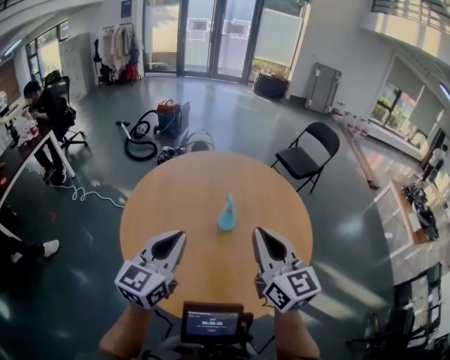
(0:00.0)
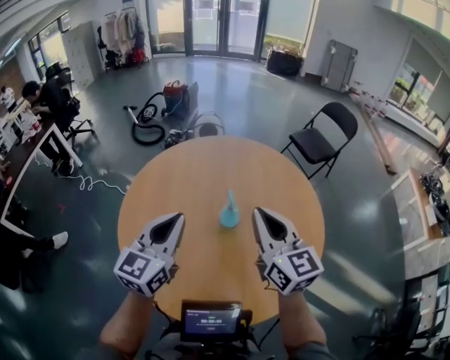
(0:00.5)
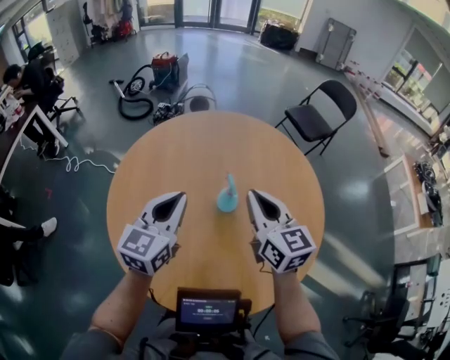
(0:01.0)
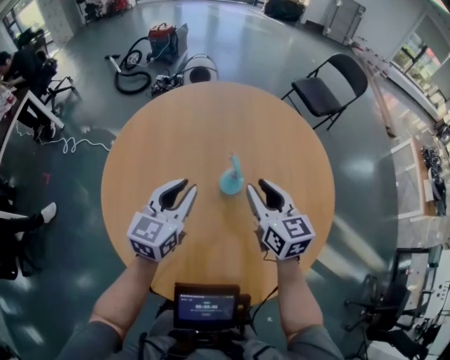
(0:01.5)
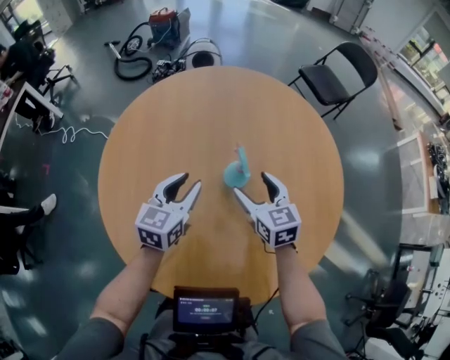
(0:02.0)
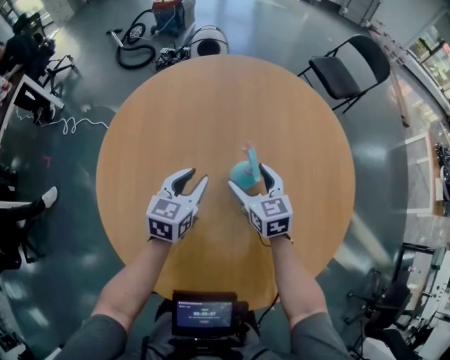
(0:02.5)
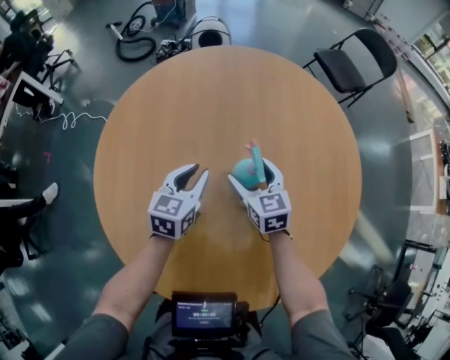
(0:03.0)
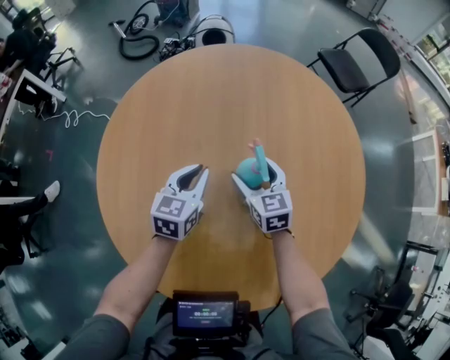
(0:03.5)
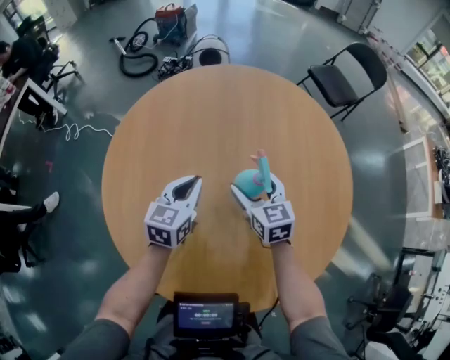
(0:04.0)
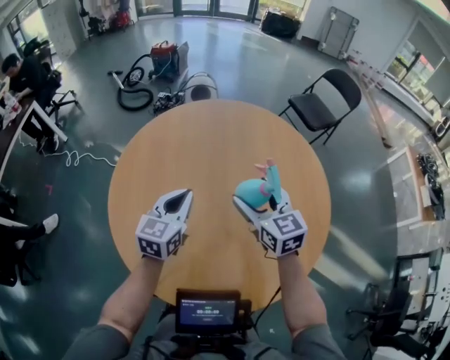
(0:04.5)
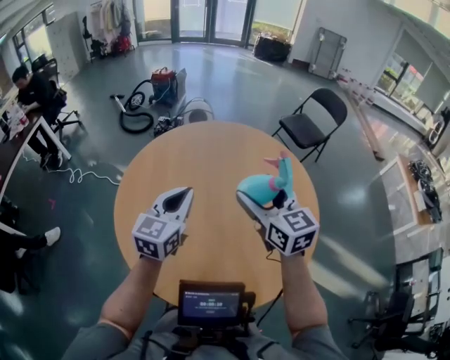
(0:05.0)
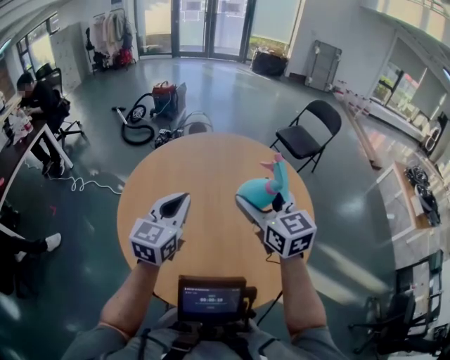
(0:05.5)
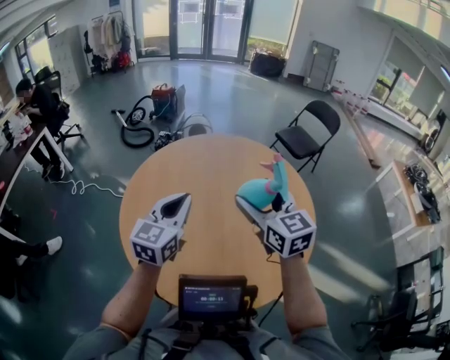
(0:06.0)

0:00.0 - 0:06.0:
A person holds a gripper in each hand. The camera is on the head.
0:00.0 - 0:02.0: The two grippers go about 30 cm downward and forward. The right gripper swivels approximately 30 degrees, and opens up. The left gripper changes its angle by about 20 degrees, and opens.
0:02.0 - 0:04.0: The right gripper goes downward and returns, some 10 cm each way; the left gripper closes.
0:04.0 - 0:06.0: The right gripper is displaced upward by approximately 30 cm. The left gripper moves upward and backward, about 25 cm, and turns by approximately 20 degrees.

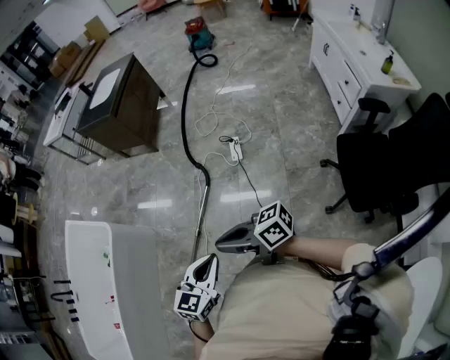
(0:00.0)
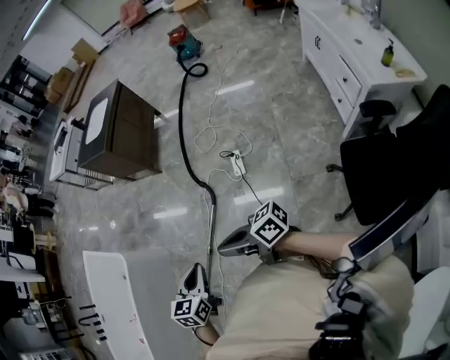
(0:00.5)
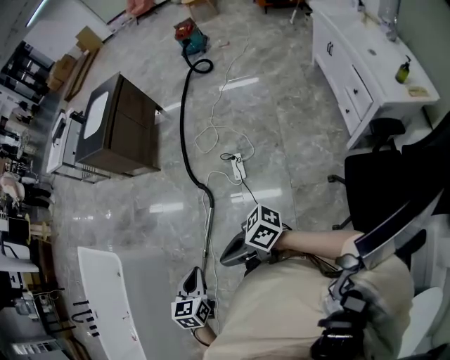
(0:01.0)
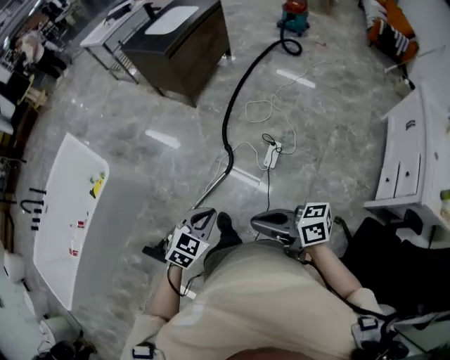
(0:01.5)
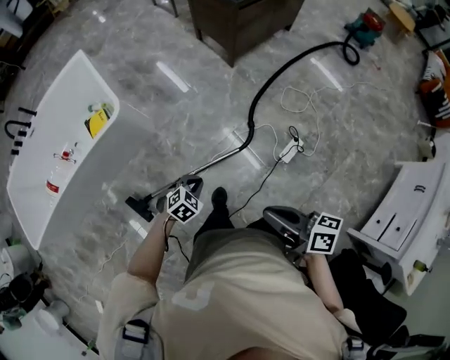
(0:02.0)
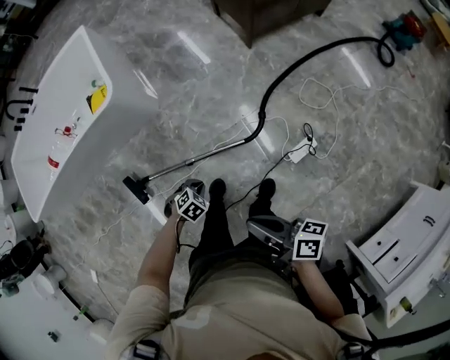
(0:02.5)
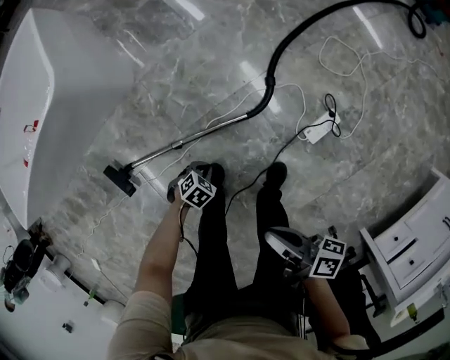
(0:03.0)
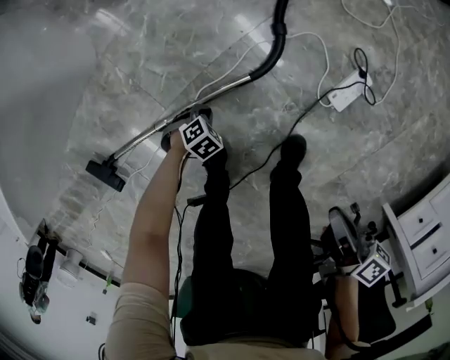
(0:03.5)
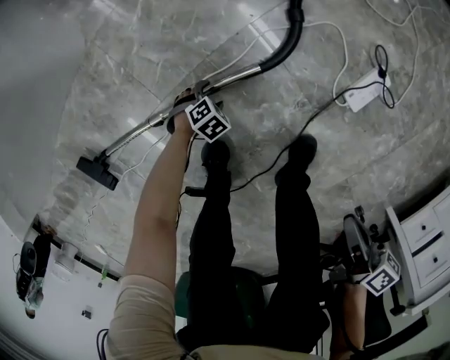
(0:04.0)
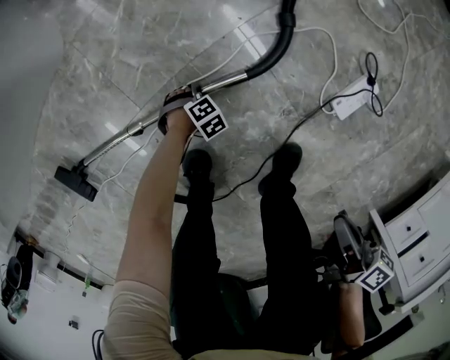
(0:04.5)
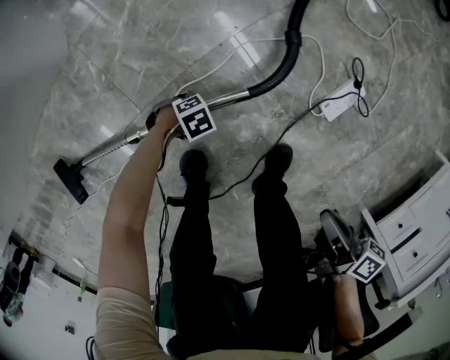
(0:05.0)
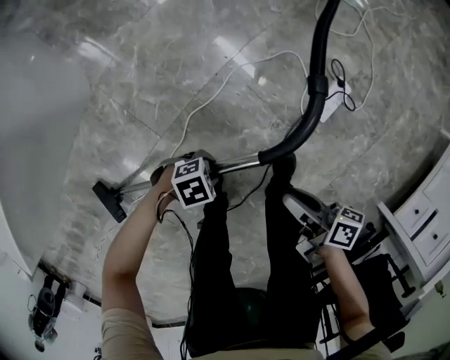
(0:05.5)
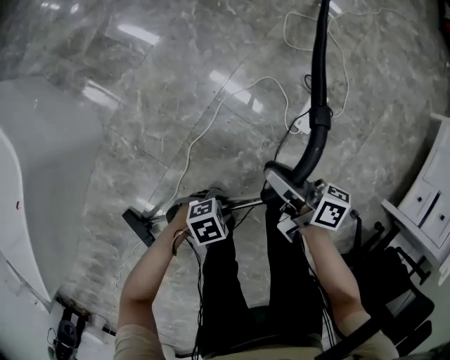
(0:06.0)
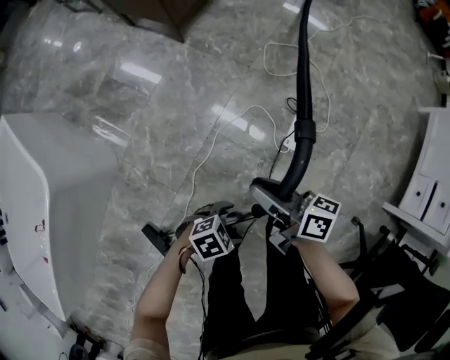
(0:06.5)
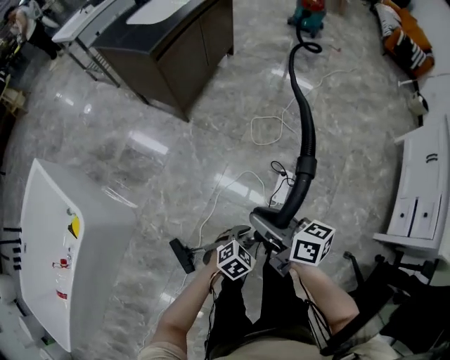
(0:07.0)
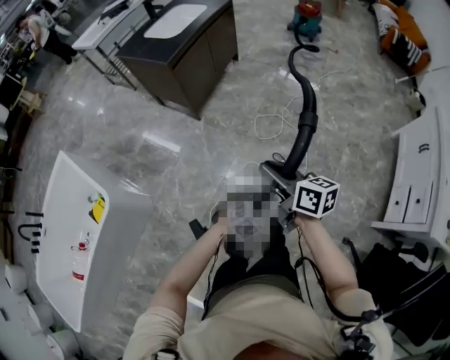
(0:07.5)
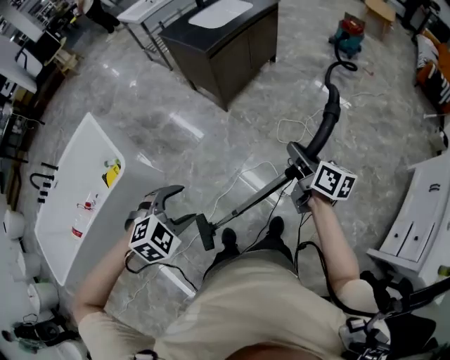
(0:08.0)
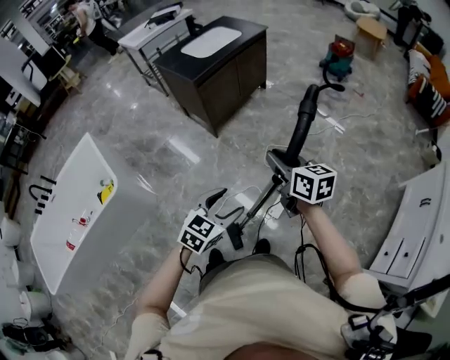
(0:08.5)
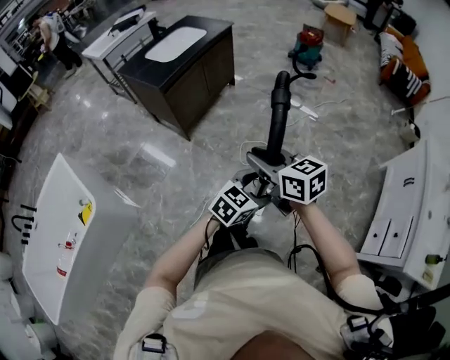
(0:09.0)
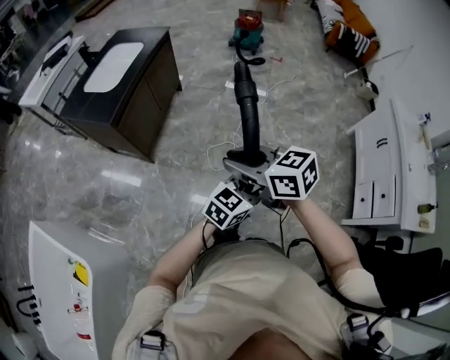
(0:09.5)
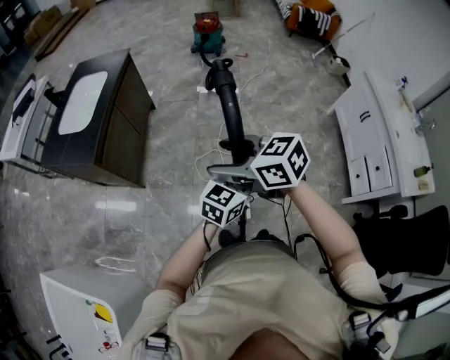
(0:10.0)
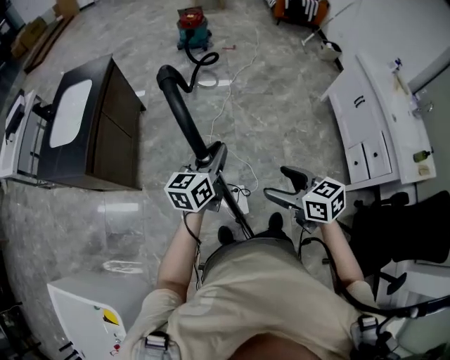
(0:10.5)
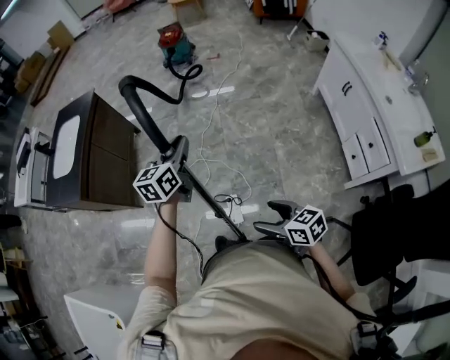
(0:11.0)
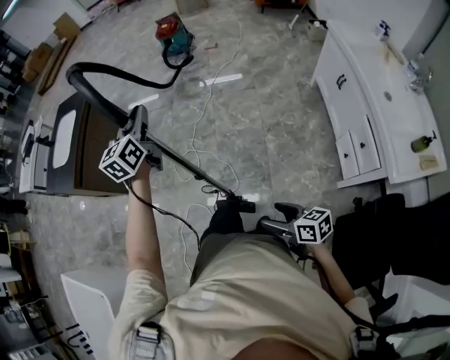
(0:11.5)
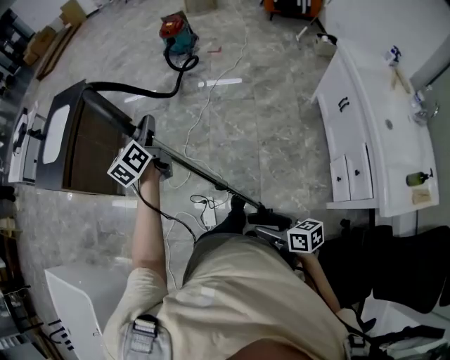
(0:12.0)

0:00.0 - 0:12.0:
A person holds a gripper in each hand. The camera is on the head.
0:00.0 - 0:02.0: The left gripper moves forward and downward, about 40 cm, and tips its fingers downward by about 30 degrees, while the right gripper is displaced forward by approximately 30 cm, and rotates about 20 degrees.
0:02.0 - 0:04.0: The two grippers go about 60 cm downward. The right gripper changes its angle by approximately 40 degrees. The left gripper swivels roughly 20 degrees, and opens up.
0:04.0 - 0:06.0: The right gripper moves roughly 20 cm, and swivels roughly 30 degrees. Meanwhile the left gripper is displaced upward by roughly 35 cm, swivels about 40 degrees, and closes.
0:06.0 - 0:08.0: The two grippers go approximately 50 cm upward. The right gripper swivels roughly 30 degrees. The left gripper changes its angle by some 50 degrees, and opens its fingers.
0:08.0 - 0:10.0: The right gripper goes about 20 cm forward and upward, turns by roughly 30 degrees, and opens up. The left gripper heads forward and to the right, covering approximately 50 cm, tilts its fingers approximately 50 degrees upward, and closes.
0:10.0 - 0:12.0: The left gripper moves to the right and forward, some 25 cm, and rotates approximately 50 degrees. The right gripper travels to the right, backward and downward by some 60 cm, and changes its angle by some 40 degrees.

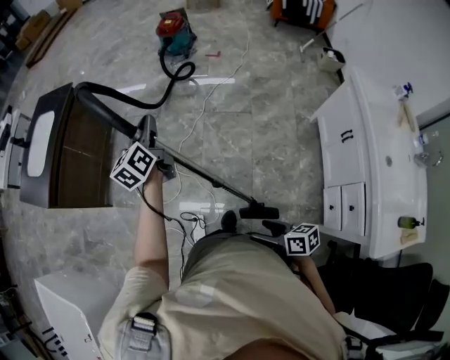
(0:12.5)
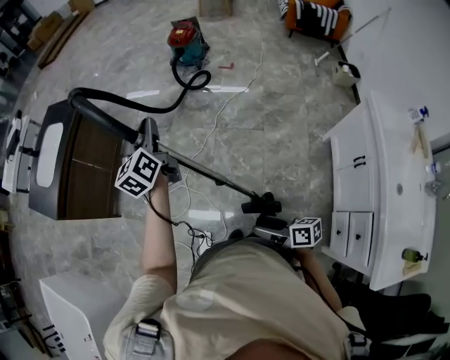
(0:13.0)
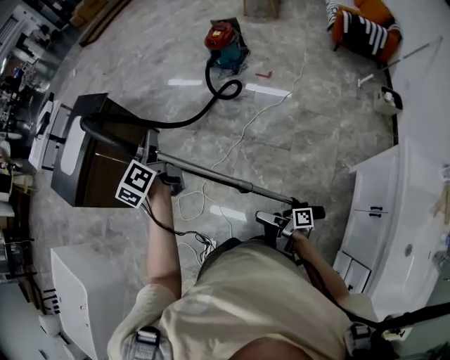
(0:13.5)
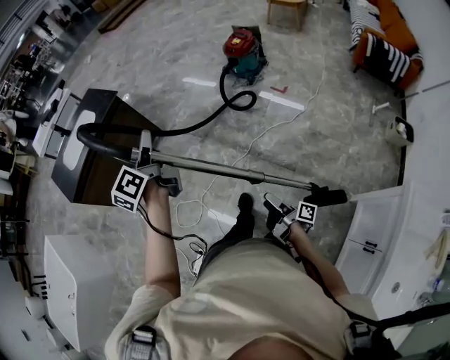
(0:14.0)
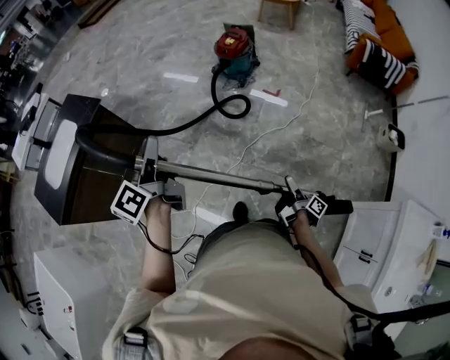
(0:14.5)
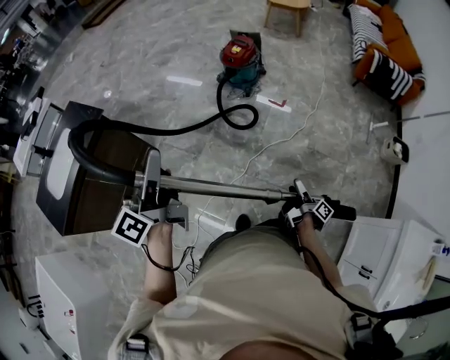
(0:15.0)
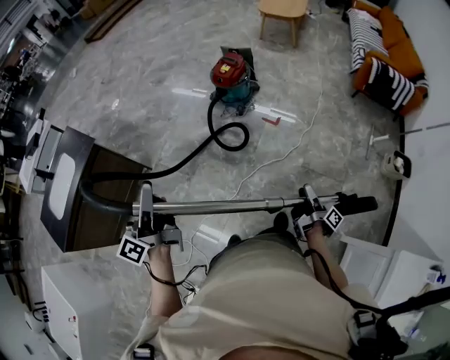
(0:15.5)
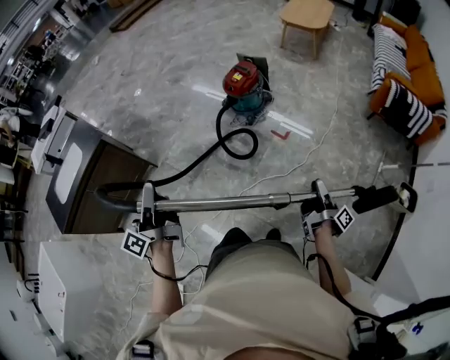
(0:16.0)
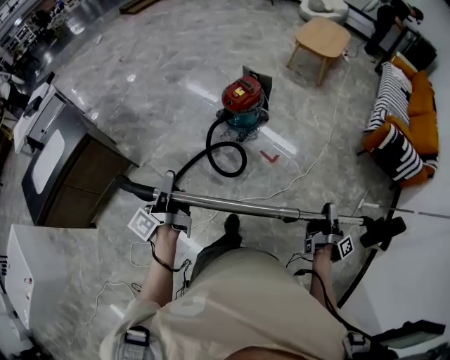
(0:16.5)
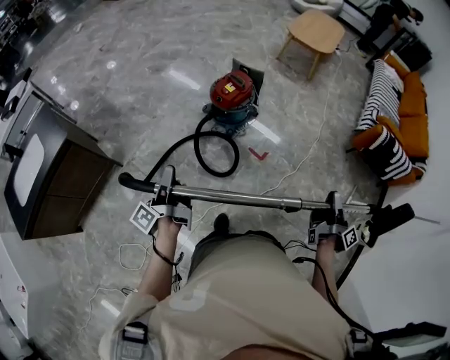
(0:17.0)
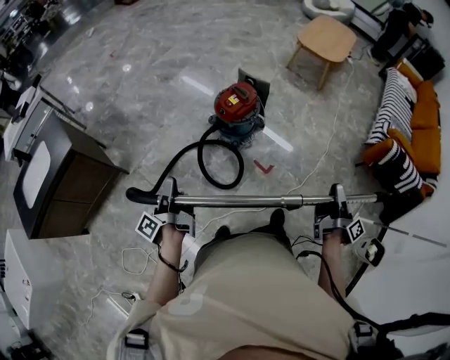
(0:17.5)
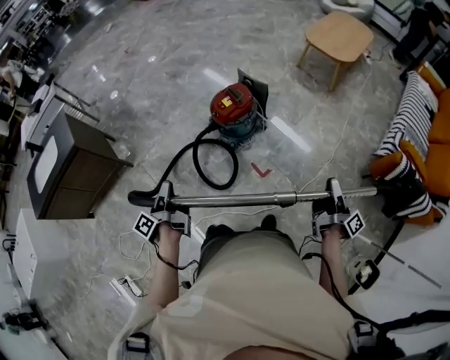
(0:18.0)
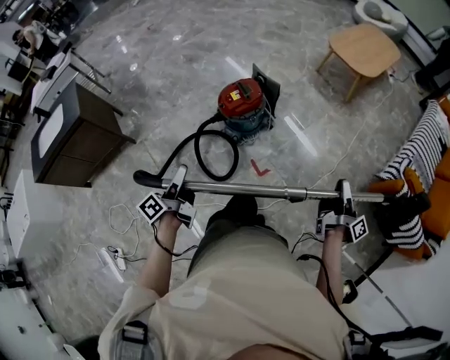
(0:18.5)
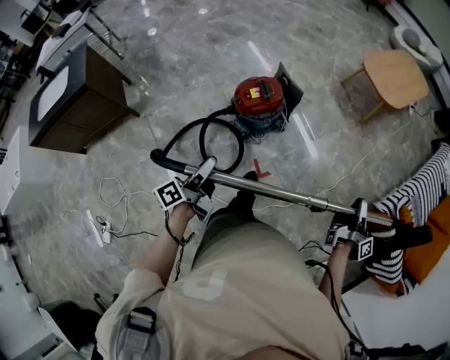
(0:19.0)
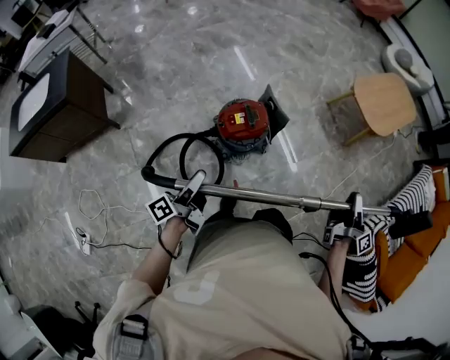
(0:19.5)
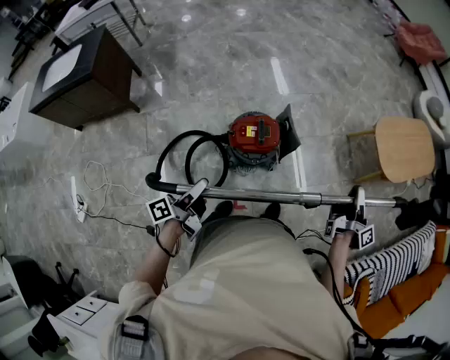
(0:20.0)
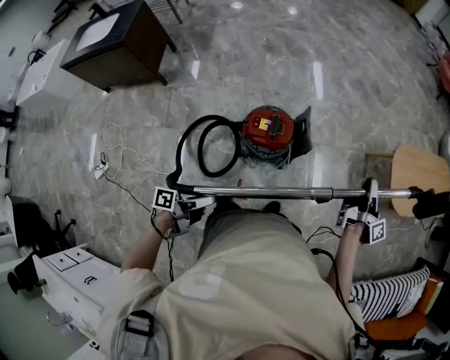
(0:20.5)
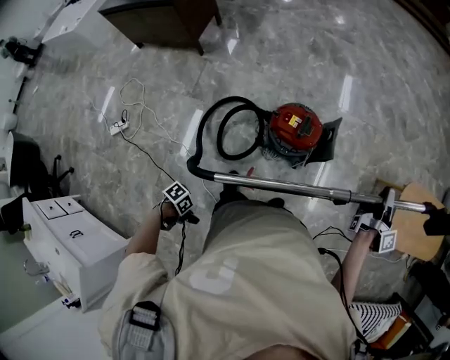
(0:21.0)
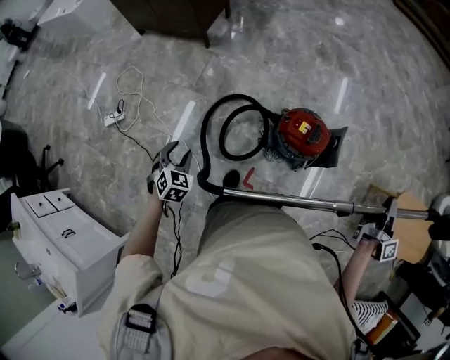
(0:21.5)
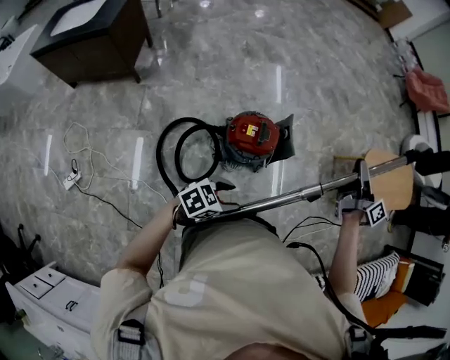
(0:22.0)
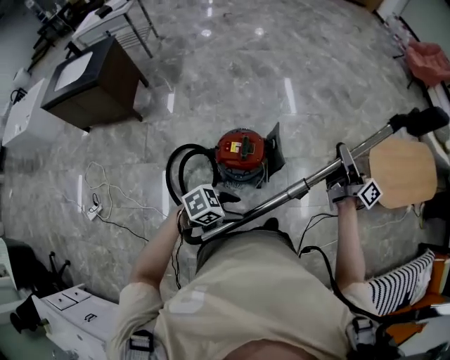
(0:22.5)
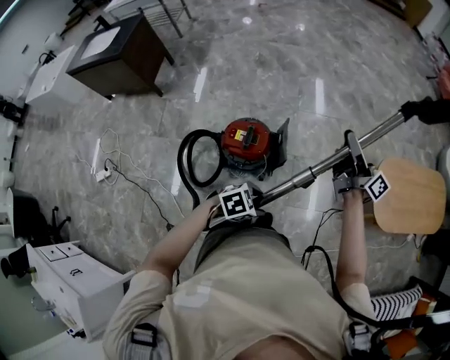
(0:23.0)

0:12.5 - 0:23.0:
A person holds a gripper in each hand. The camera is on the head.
0:12.5 - 0:14.5: The right gripper shifts some 70 cm forward and to the right, and rotates around the line of its fingers by approximately 50 degrees, clockwise from behind. The left gripper goes some 30 cm forward, and rotates some 30 degrees.
0:14.5 - 0:16.5: The right gripper heads forward and to the right, covering approximately 50 cm, and closes its fingers. Meanwhile the left gripper travels forward and to the right by roughly 30 cm, and turns by about 20 degrees.
0:16.5 - 0:19.0: The pair of grippers is taken forward and to the right, approximately 50 cm. The left gripper opens up.
0:19.0 - 0:21.0: The left gripper changes place by approximately 35 cm, and points its fingers roughly 40 degrees further downward, while the right gripper ends up roughly 50 cm from where it was, and turns by some 40 degrees.
0:21.0 - 0:23.0: The left gripper changes place by approximately 50 cm, and rolls clockwise, seen from behind, by roughly 60 degrees. Meanwhile the right gripper changes place by approximately 15 cm, and changes its angle by some 40 degrees.
